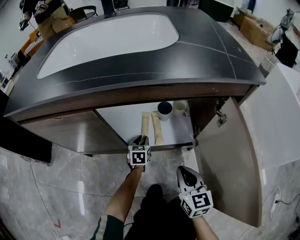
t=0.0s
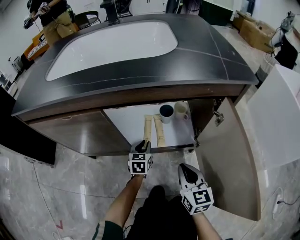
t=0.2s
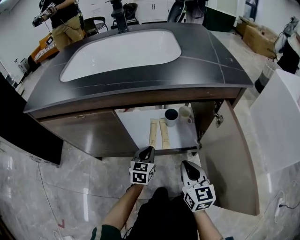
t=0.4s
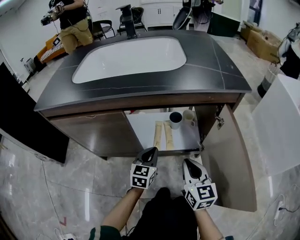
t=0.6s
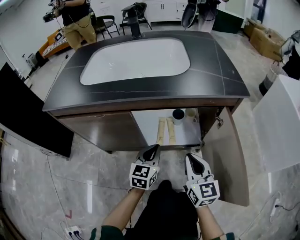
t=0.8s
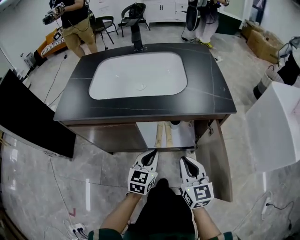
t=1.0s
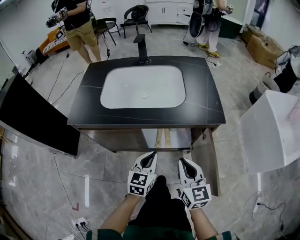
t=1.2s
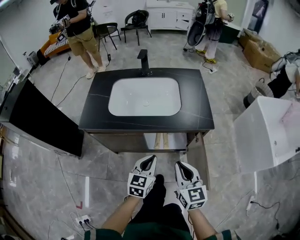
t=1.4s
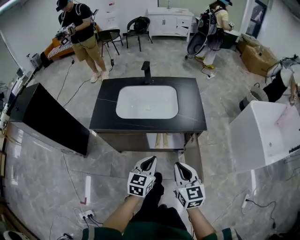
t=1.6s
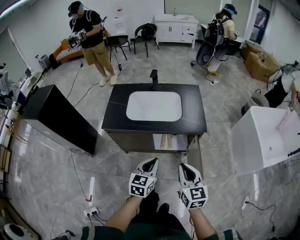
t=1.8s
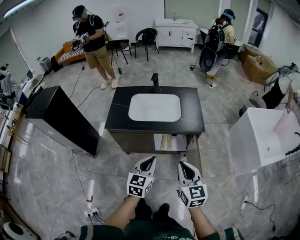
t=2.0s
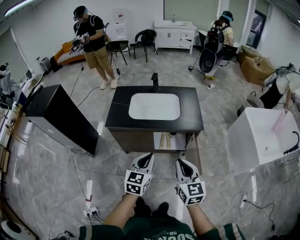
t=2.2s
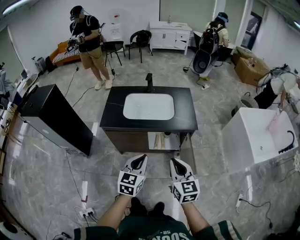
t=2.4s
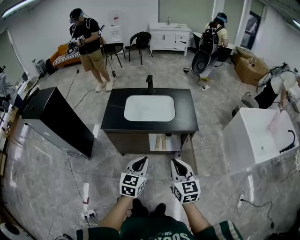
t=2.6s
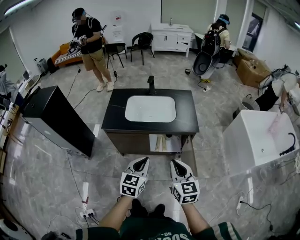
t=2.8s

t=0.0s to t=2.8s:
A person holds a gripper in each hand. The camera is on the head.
t=0.0s to t=1.4s: The two grippers go roughly 50 cm upward.
t=1.4s to t=2.8s: The grippers both shift upward and backward by some 30 cm.

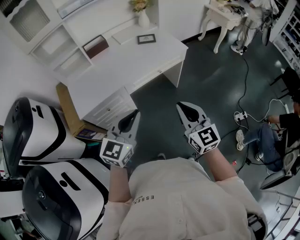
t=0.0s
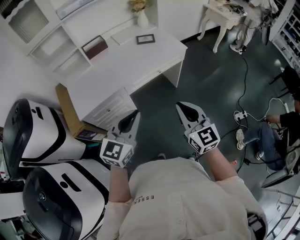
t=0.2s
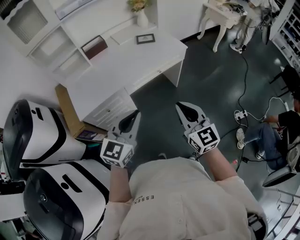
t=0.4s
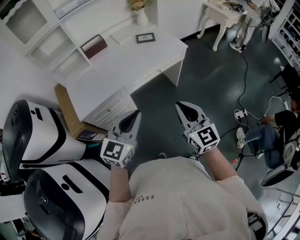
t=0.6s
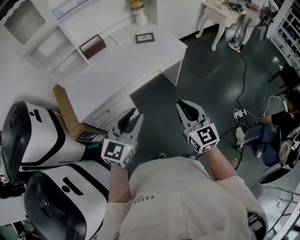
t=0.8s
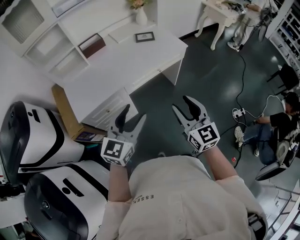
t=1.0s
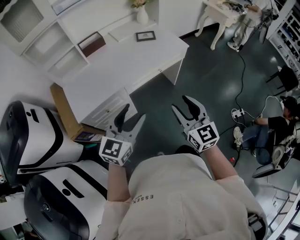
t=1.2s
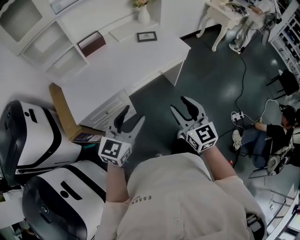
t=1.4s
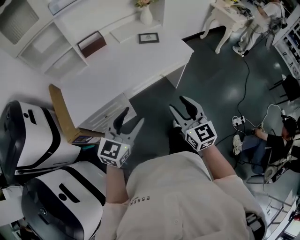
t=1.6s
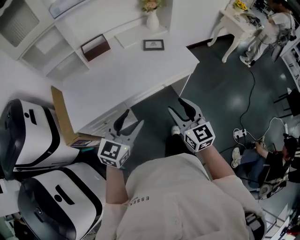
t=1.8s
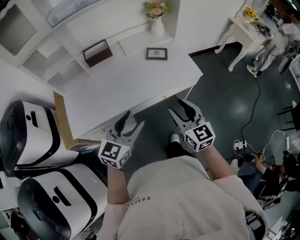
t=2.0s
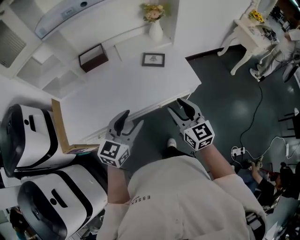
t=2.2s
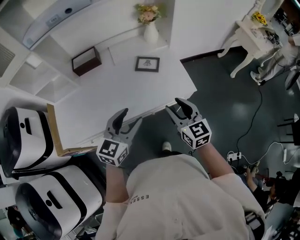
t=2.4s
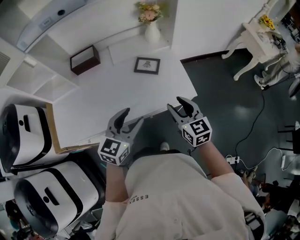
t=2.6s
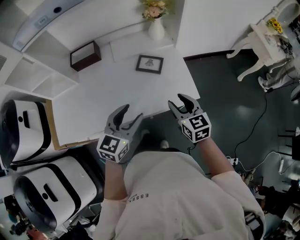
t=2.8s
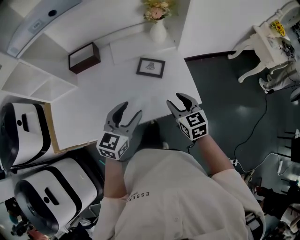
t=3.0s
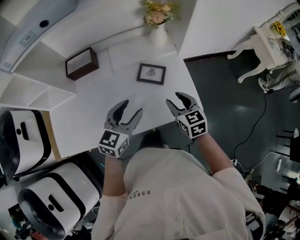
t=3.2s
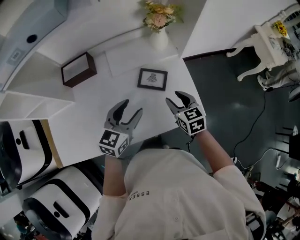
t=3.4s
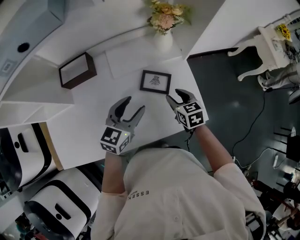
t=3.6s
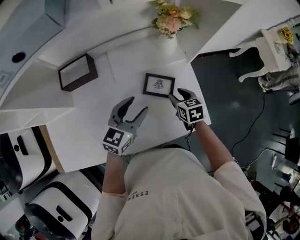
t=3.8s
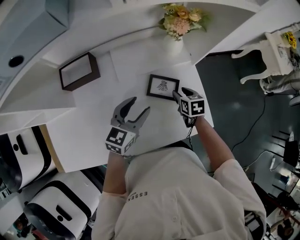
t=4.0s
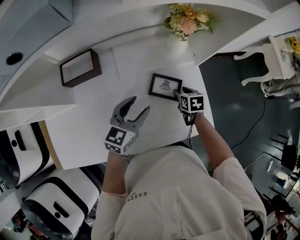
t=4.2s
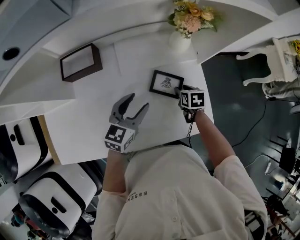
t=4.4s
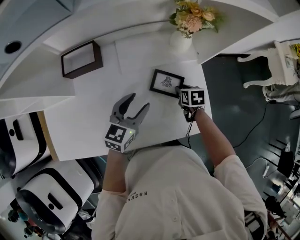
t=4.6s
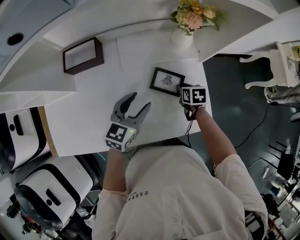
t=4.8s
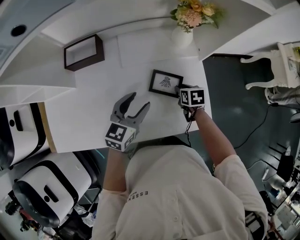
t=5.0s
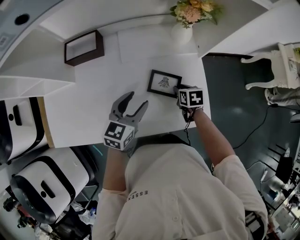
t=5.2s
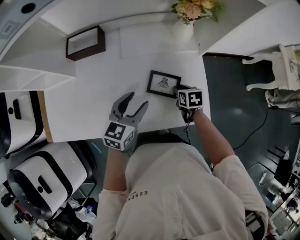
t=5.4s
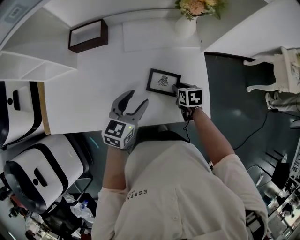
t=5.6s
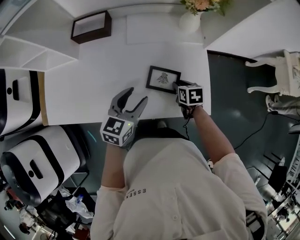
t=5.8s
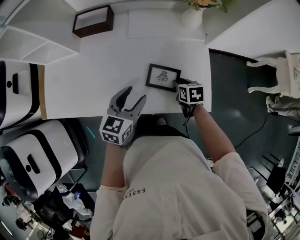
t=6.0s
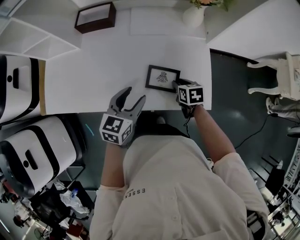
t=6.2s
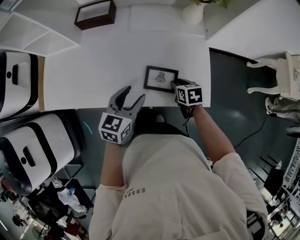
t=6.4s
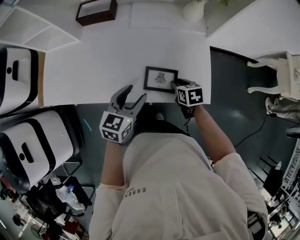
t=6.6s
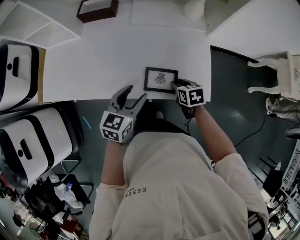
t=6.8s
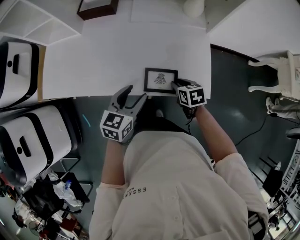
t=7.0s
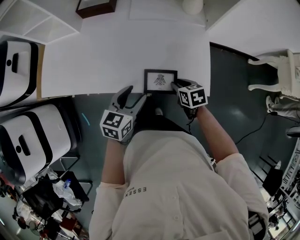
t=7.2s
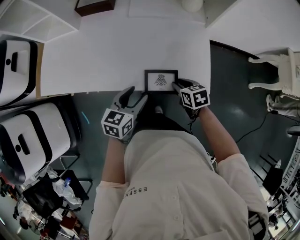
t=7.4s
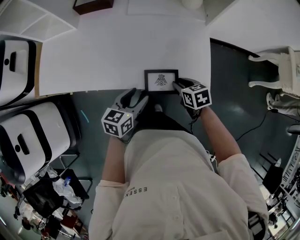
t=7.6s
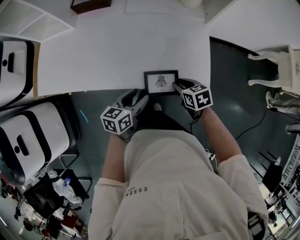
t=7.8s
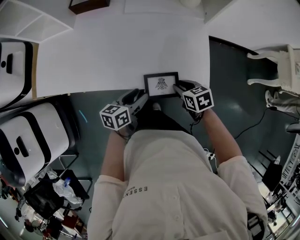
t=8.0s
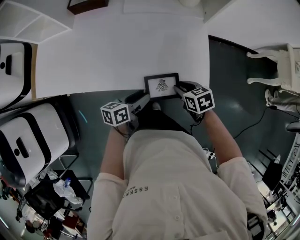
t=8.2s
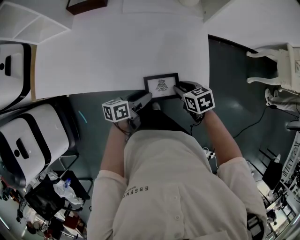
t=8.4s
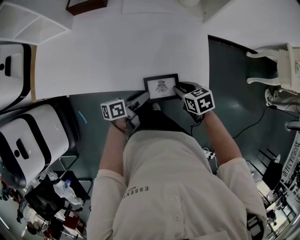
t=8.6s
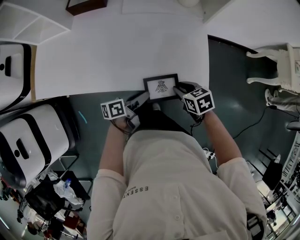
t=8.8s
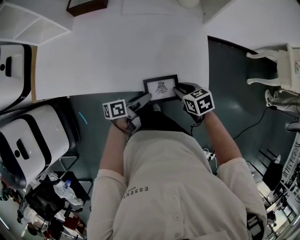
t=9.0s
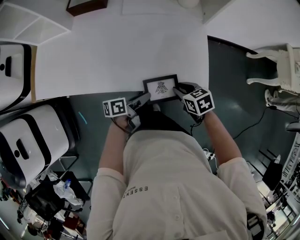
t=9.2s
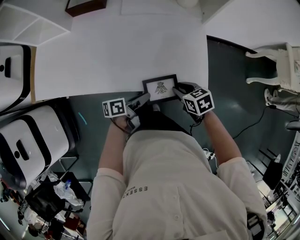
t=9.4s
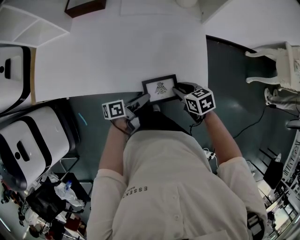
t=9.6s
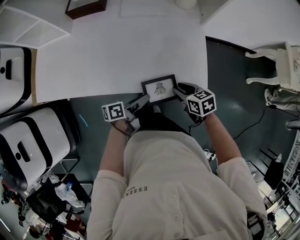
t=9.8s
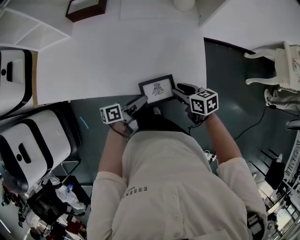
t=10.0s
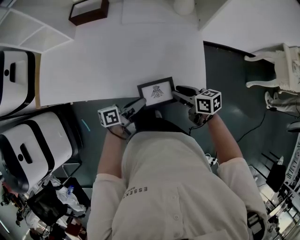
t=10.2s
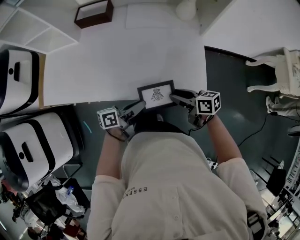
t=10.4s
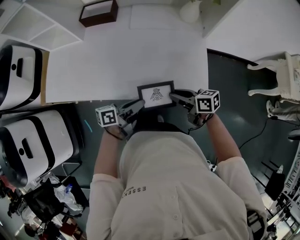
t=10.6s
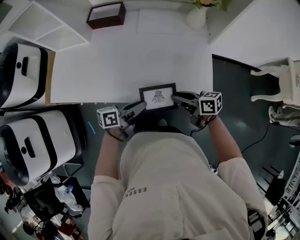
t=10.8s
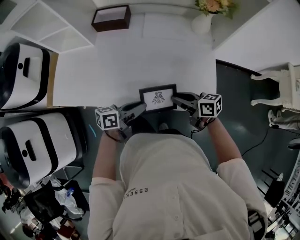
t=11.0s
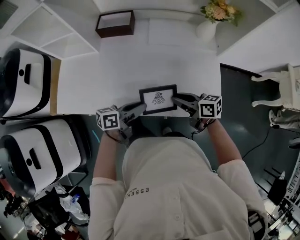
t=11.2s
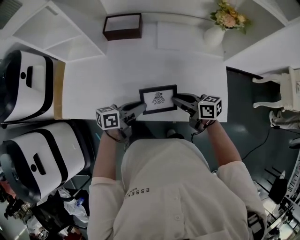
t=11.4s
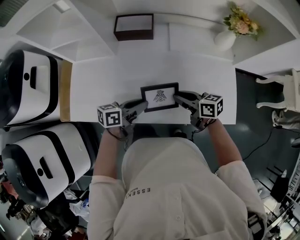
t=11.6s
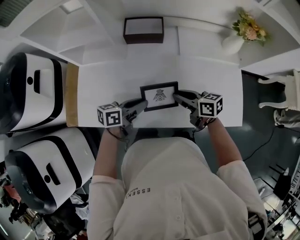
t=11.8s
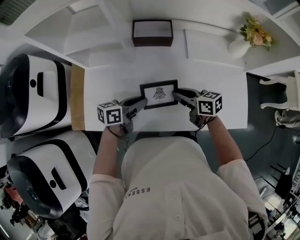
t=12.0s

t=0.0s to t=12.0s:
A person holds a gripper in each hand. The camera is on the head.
t=0.0s to t=1.6s: The two grippers go some 10 cm forward. The right gripper opens, while the left gripper opens its fingers.
t=1.6s to t=3.0s: The grippers both shift forward by roughly 40 cm. The right gripper swivels some 30 degrees.
t=3.0s to t=4.4s: The left gripper heads forward, covering roughly 20 cm. The right gripper goes about 25 cm forward and downward, and tilts its fingers some 30 degrees downward.
t=4.4s to t=6.0s: Both grippers move backward, roughly 15 cm.
t=6.0s to t=7.6s: The left gripper heads backward and downward, covering roughly 15 cm, while the right gripper travels backward by roughly 10 cm.
t=7.6s to t=9.0s: The left gripper moves downward, roughly 5 cm, and twists about 40 degrees counterclockwise, seen from behind.
t=9.0s to t=10.4s: Both grippers move upward, approximately 5 cm. The right gripper changes its angle by some 40 degrees. Meanwhile the left gripper closes up.
t=10.4s to t=12.0s: The right gripper changes place by approximately 35 cm. The left gripper shifts by about 35 cm, and turns by approximately 20 degrees.

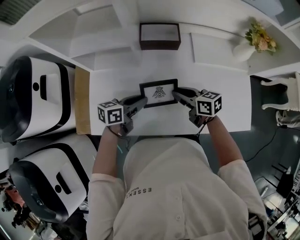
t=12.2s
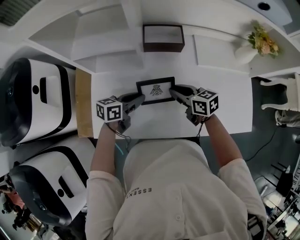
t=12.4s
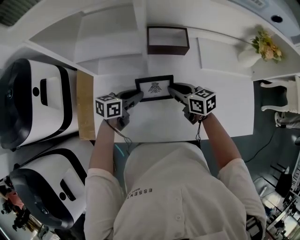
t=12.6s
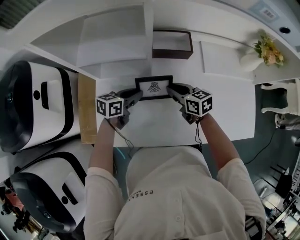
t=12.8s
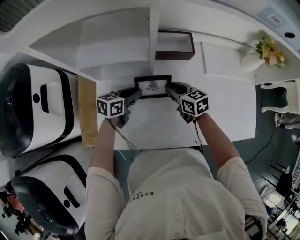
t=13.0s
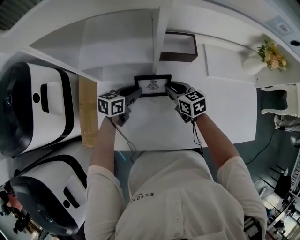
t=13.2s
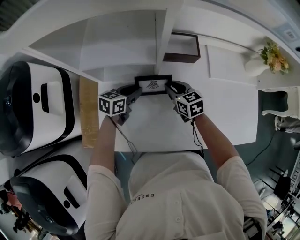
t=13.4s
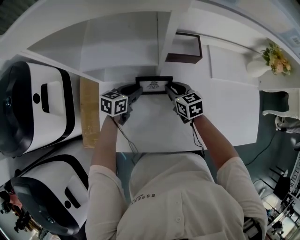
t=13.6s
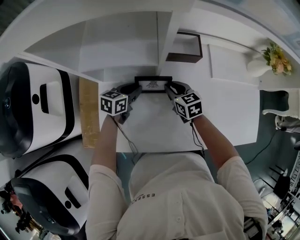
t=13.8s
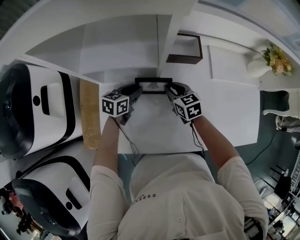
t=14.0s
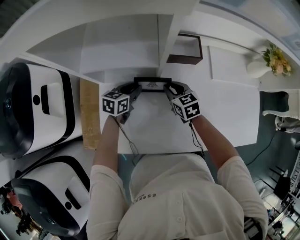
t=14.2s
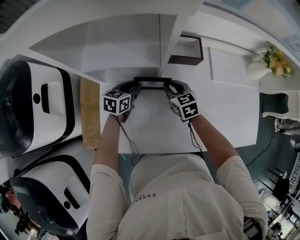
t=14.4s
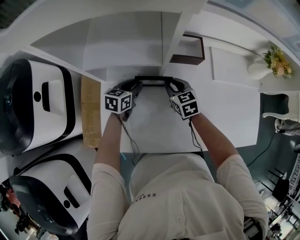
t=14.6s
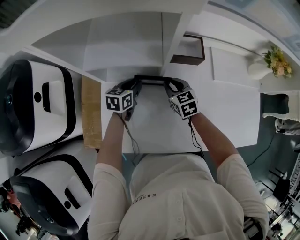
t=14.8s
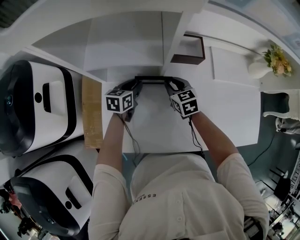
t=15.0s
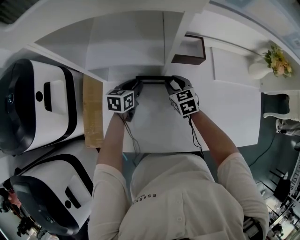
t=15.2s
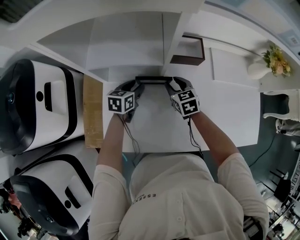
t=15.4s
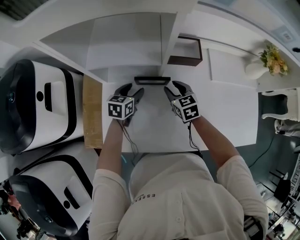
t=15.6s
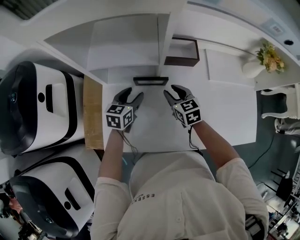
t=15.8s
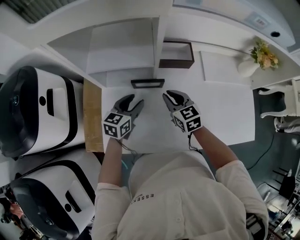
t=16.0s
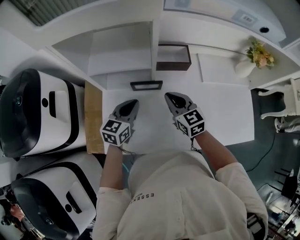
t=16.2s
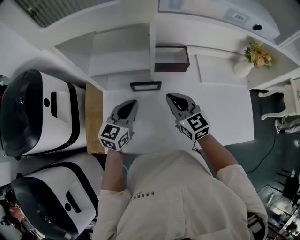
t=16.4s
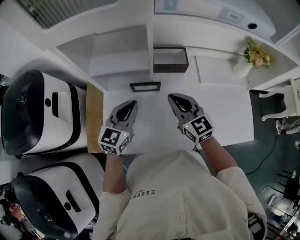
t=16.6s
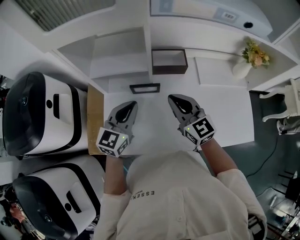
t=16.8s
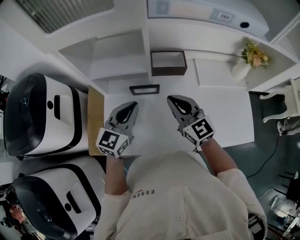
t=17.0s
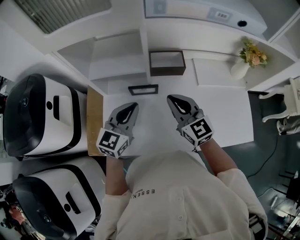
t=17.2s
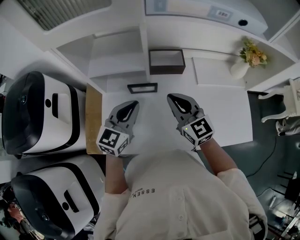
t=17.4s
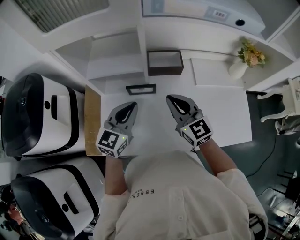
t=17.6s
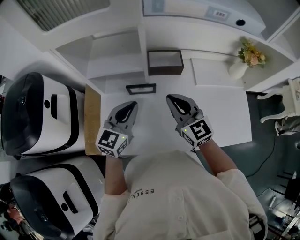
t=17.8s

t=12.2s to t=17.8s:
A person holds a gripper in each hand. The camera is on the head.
t=12.2s to t=13.6s: The right gripper travels to the left, forward and downward by roughly 15 cm, and turns by some 20 degrees. The left gripper moves forward, to the left and downward, roughly 20 cm.
t=13.6s to t=15.0s: The grippers make only small movements.
t=15.0s to t=16.4s: Both grippers travel together upward and backward, some 20 cm. The right gripper rotates some 20 degrees; the left gripper turns by about 30 degrees, and closes its fingers.
t=16.4s to t=17.8s: The two grippers go approximately 5 cm upward.

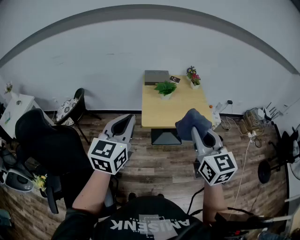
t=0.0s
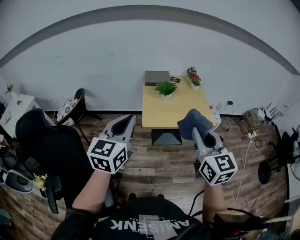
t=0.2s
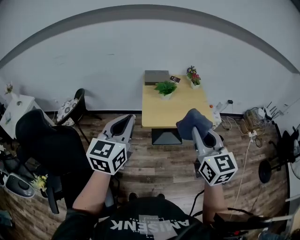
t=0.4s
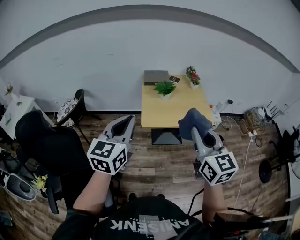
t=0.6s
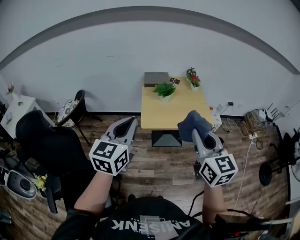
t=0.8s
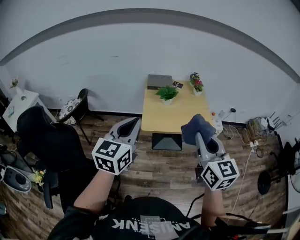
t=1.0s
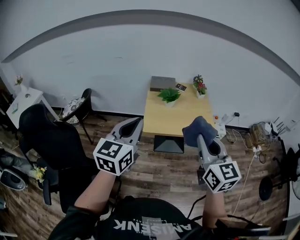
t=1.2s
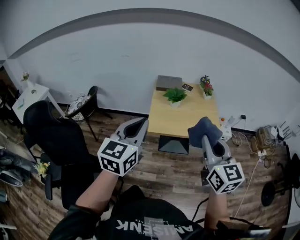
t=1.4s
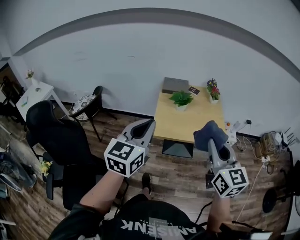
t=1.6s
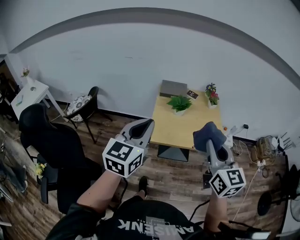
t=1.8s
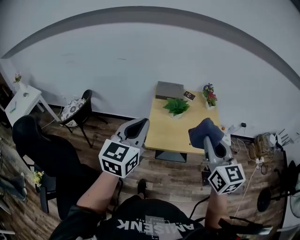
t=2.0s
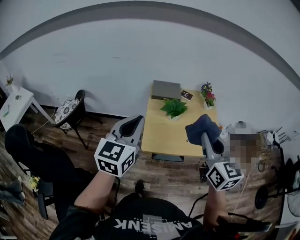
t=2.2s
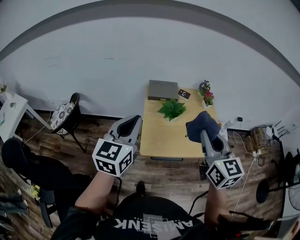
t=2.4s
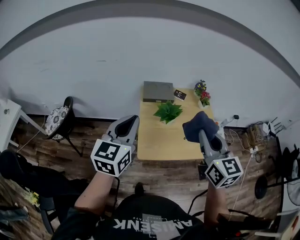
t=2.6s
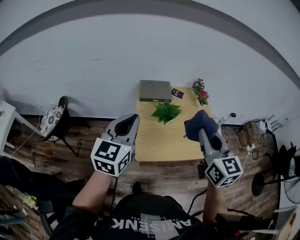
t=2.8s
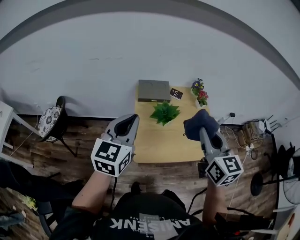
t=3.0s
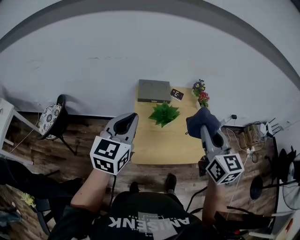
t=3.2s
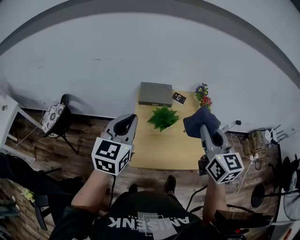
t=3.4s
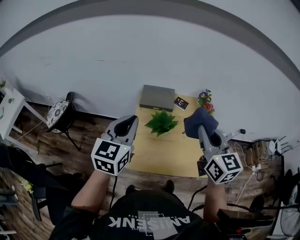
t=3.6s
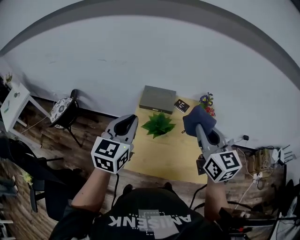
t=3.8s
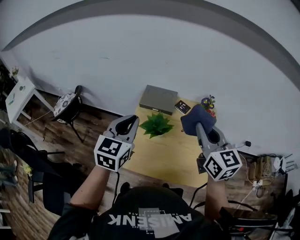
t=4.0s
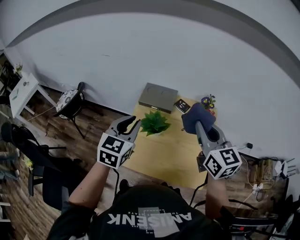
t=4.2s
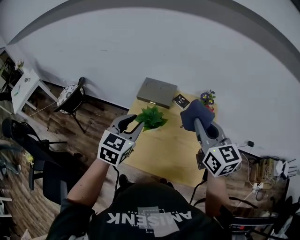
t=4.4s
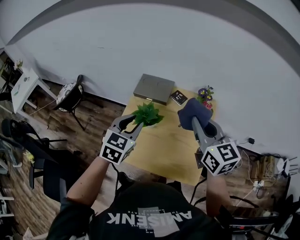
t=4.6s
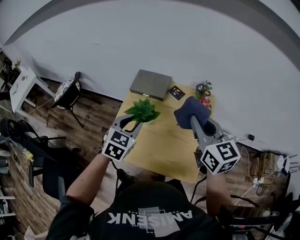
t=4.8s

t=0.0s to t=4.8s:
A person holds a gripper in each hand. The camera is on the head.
t=0.0s to t=1.6s: The left gripper goes about 10 cm to the right. The right gripper is displaced to the right and forward by about 10 cm.
t=1.6s to t=3.2s: Both grippers travel together forward, approximately 30 cm.
t=3.2s to t=4.8s: The right gripper travels to the right and forward by some 25 cm, and rotates approximately 30 degrees. The left gripper is displaced to the right and downward by roughly 25 cm, turns by approximately 30 degrees, and opens its fingers.
